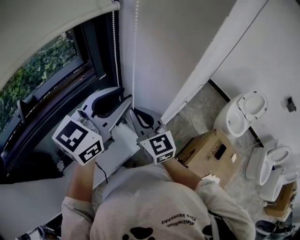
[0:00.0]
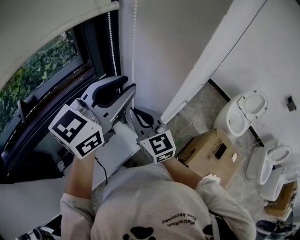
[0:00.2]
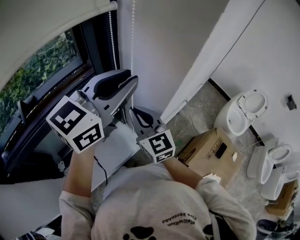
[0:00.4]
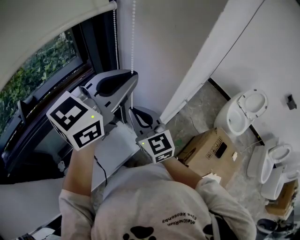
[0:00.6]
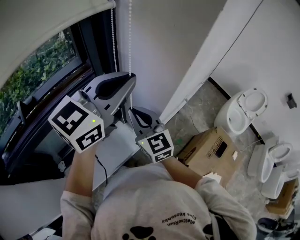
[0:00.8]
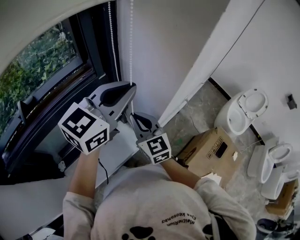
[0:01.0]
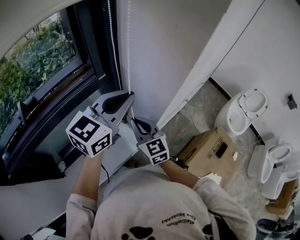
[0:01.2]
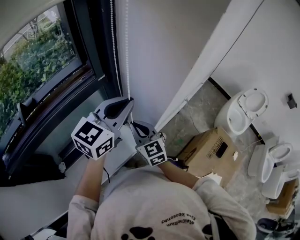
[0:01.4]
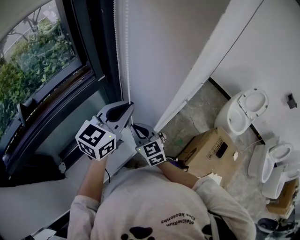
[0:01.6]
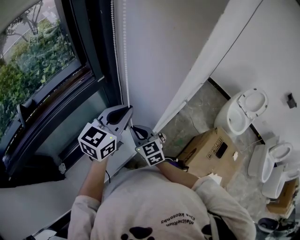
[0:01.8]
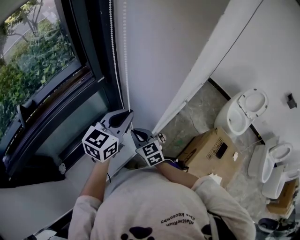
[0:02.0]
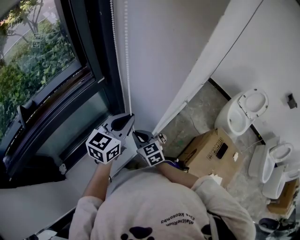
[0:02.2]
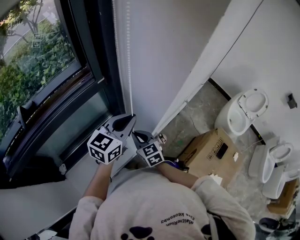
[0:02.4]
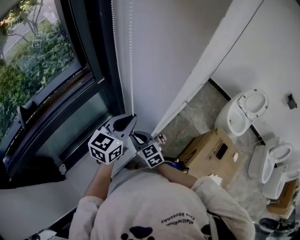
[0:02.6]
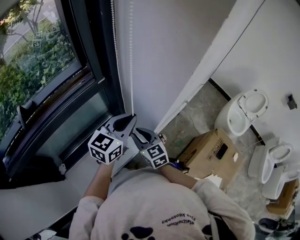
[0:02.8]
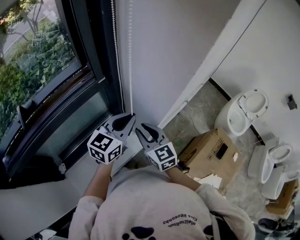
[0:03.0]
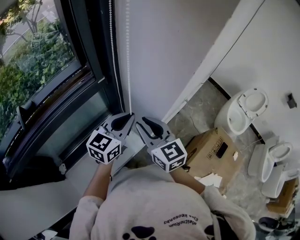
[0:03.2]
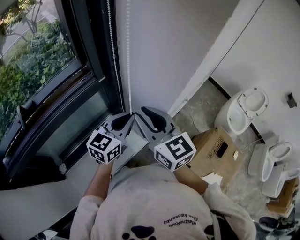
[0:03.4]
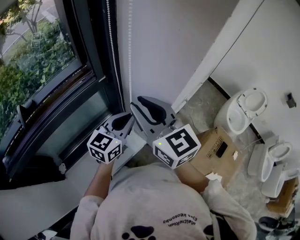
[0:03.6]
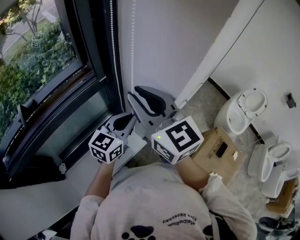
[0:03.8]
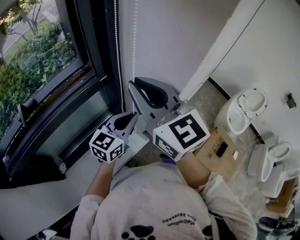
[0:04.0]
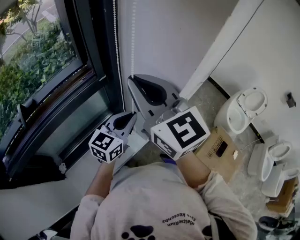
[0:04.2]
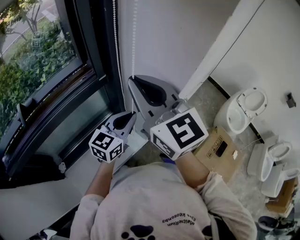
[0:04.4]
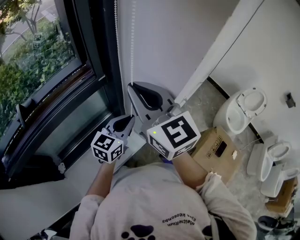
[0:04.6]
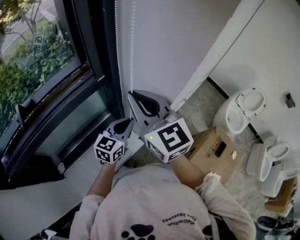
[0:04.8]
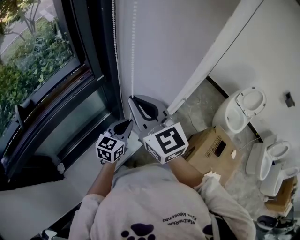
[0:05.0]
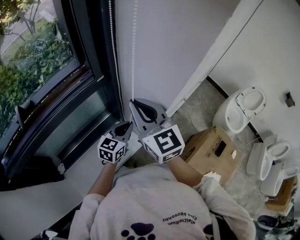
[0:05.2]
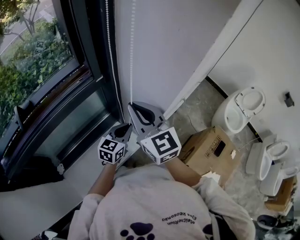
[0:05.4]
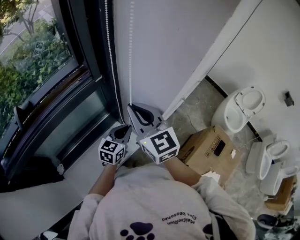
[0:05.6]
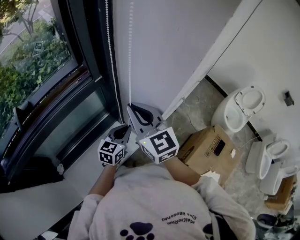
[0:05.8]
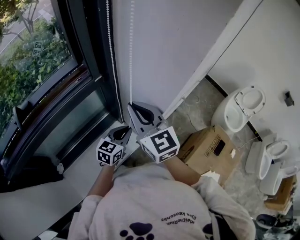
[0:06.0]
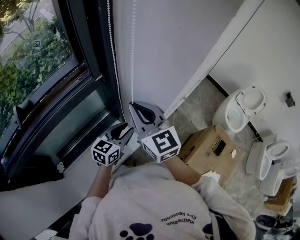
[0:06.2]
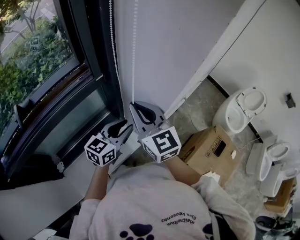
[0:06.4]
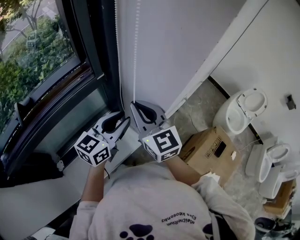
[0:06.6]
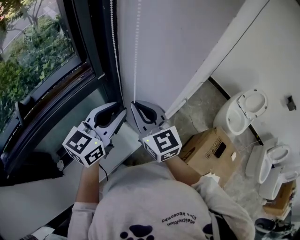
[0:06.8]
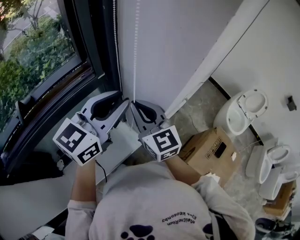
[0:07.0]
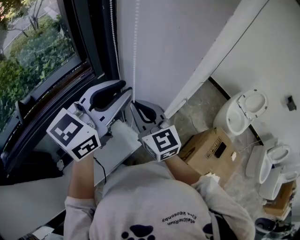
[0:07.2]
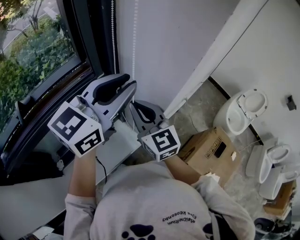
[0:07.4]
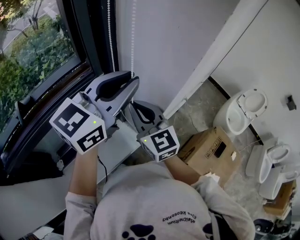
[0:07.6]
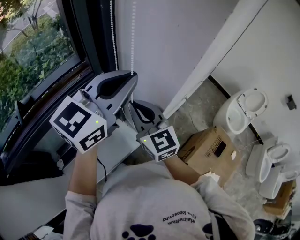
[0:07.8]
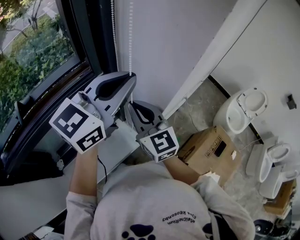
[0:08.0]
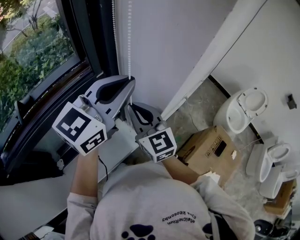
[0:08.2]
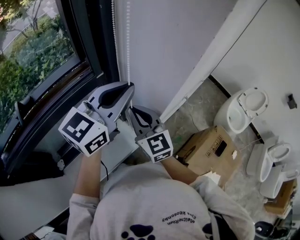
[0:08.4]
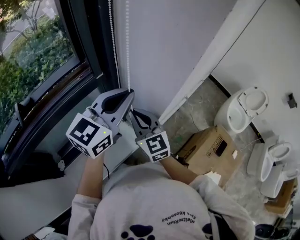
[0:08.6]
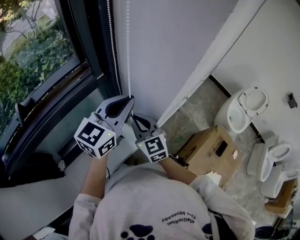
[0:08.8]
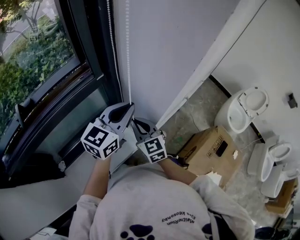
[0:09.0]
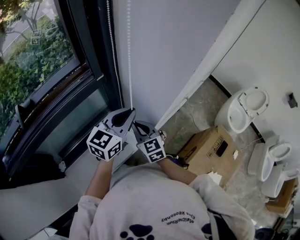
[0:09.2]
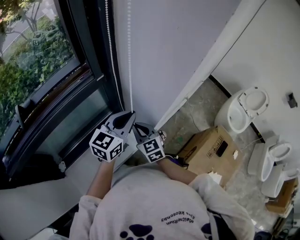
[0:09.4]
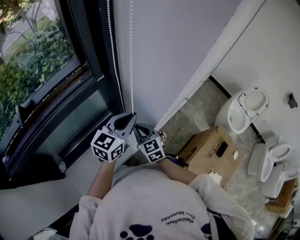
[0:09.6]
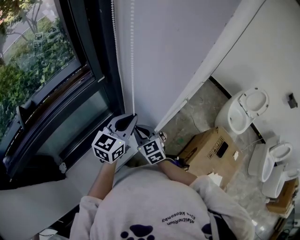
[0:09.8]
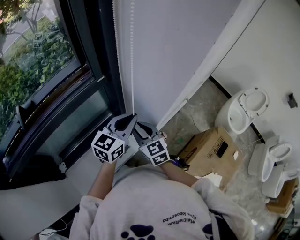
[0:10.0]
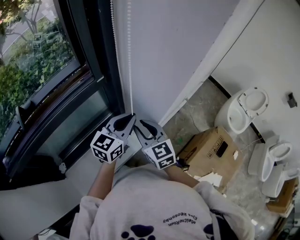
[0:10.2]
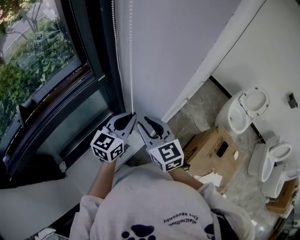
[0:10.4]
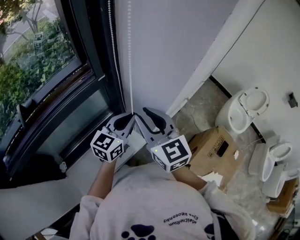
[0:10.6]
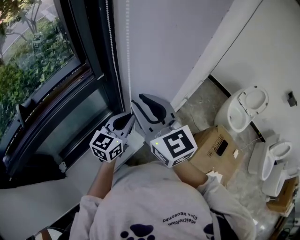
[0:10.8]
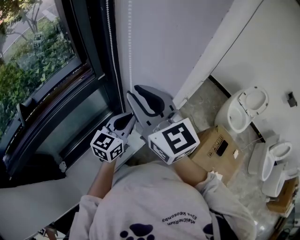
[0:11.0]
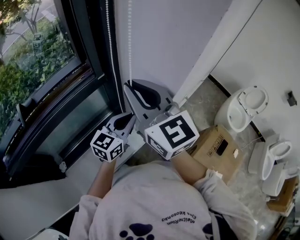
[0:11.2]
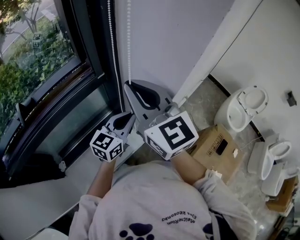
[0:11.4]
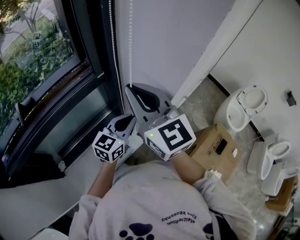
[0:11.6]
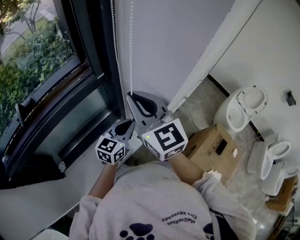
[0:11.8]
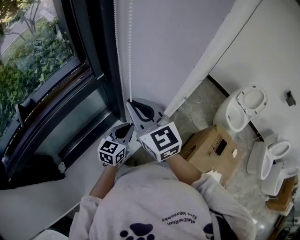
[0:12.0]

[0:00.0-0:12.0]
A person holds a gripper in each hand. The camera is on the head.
0:00.0 to 0:01.6: The grippers both shift downward by about 10 cm. The left gripper closes its fingers.
0:01.6 to 0:03.0: The left gripper travels downward by approximately 5 cm. The right gripper moves approximately 5 cm downward and comes back, and opens.
0:03.0 to 0:04.4: The right gripper moves upward, some 25 cm, turns by approximately 20 degrees, and closes its fingers.
0:04.4 to 0:06.0: The two grippers go some 15 cm downward.
0:06.0 to 0:07.6: The left gripper heads upward, covering about 35 cm, and rotates about 30 degrees.
0:07.6 to 0:09.0: Both grippers travel together downward, some 15 cm.
0:09.0 to 0:10.4: The right gripper is displaced upward by about 10 cm, and opens up, while the left gripper travels downward by some 5 cm.
0:10.4 to 0:12.0: The right gripper goes roughly 10 cm upward, and closes. The left gripper is displaced downward by about 10 cm.

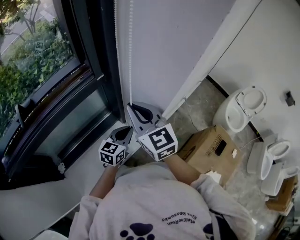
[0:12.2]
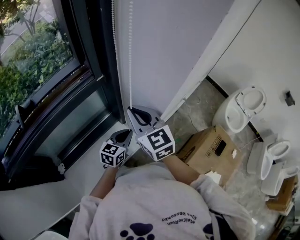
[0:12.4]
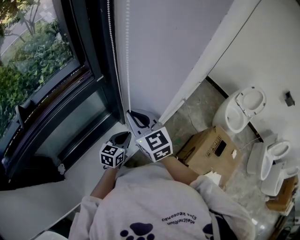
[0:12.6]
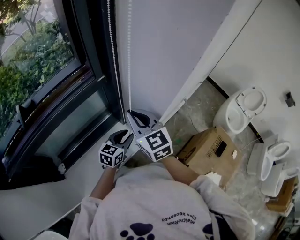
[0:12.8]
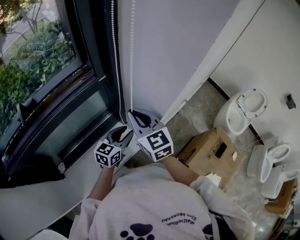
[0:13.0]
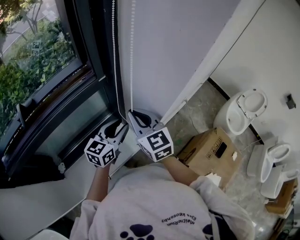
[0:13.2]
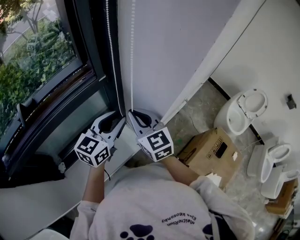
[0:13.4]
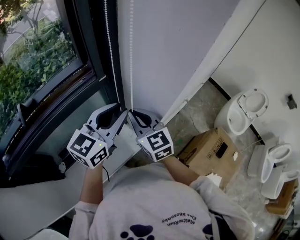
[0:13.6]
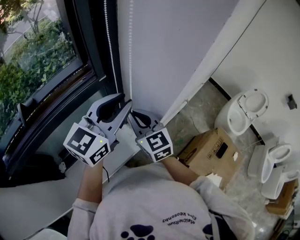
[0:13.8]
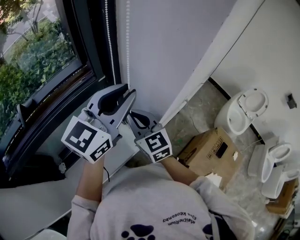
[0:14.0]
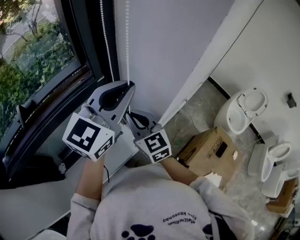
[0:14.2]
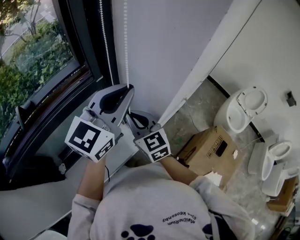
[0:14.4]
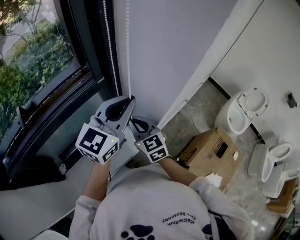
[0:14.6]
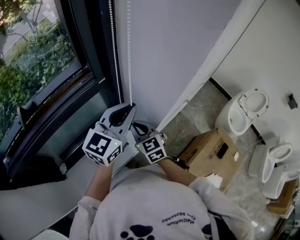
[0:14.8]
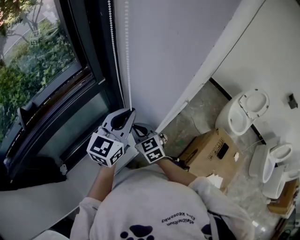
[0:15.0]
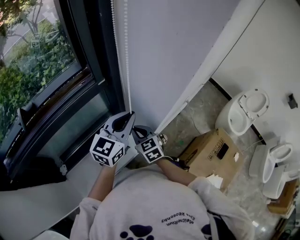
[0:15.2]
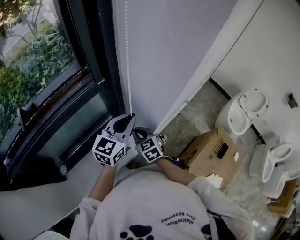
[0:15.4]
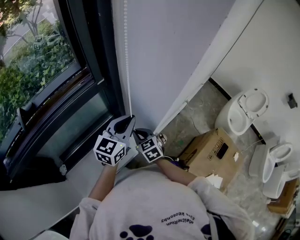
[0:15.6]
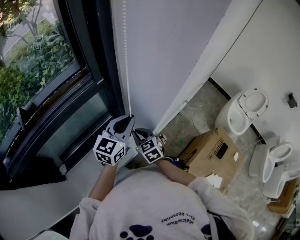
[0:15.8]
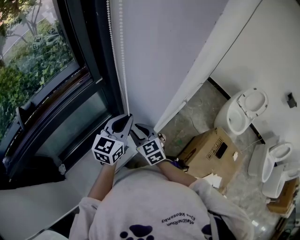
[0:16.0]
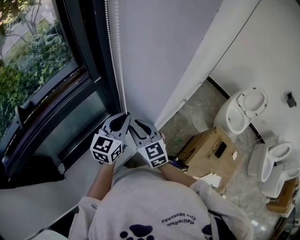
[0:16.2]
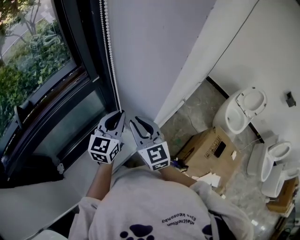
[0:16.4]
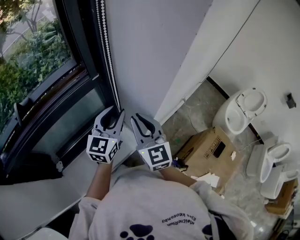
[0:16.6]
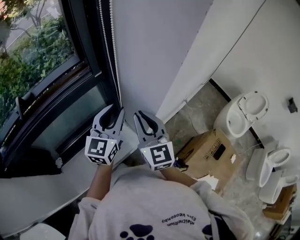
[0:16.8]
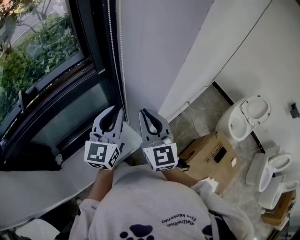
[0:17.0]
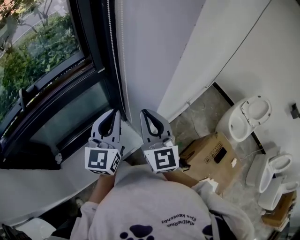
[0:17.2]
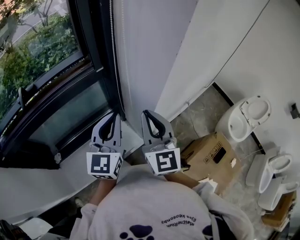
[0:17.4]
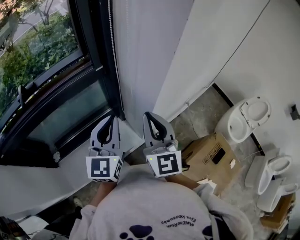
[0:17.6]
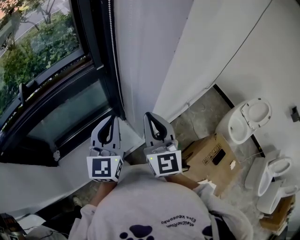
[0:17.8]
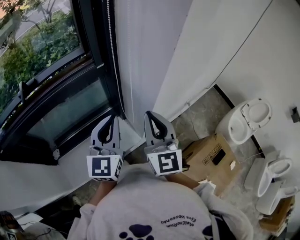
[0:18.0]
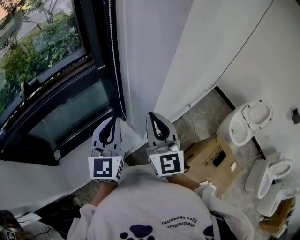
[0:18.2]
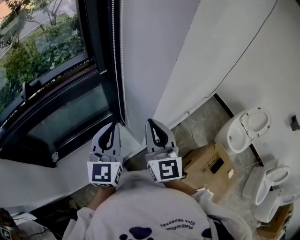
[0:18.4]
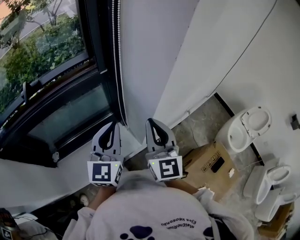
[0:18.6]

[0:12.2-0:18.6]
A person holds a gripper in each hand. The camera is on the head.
0:12.2 to 0:13.8: The left gripper heads upward, covering roughly 25 cm, turns by about 20 degrees, and opens.
0:13.8 to 0:15.4: The two grippers go roughly 15 cm downward. The left gripper closes up; the right gripper swivels some 20 degrees.
0:15.4 to 0:17.0: The right gripper travels upward by some 20 cm, points its fingers approximately 30 degrees further upward, and opens, then closes once more; the left gripper travels upward by some 5 cm, and rotates some 20 degrees.
0:17.0 to 0:18.6: The left gripper travels backward by approximately 5 cm.

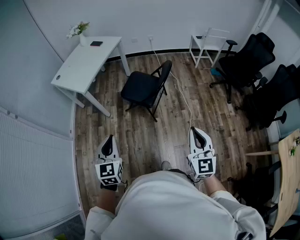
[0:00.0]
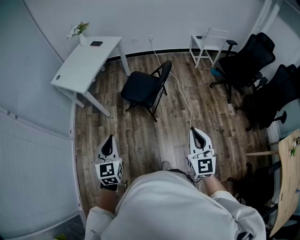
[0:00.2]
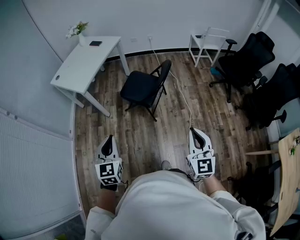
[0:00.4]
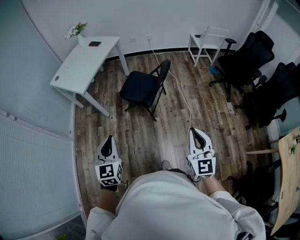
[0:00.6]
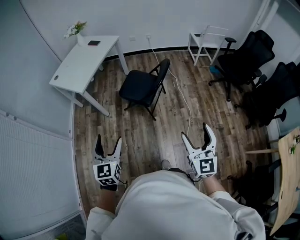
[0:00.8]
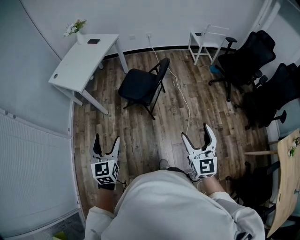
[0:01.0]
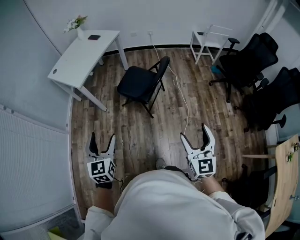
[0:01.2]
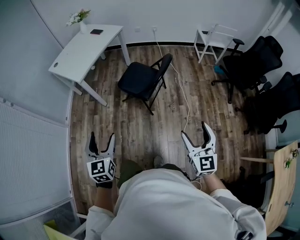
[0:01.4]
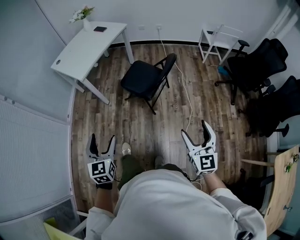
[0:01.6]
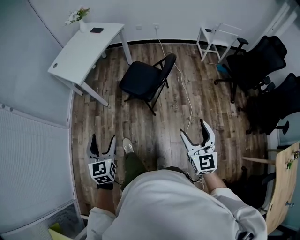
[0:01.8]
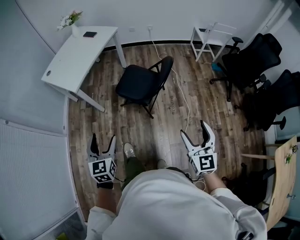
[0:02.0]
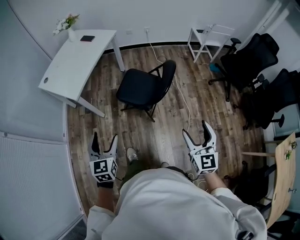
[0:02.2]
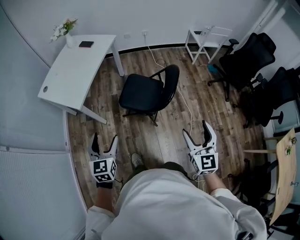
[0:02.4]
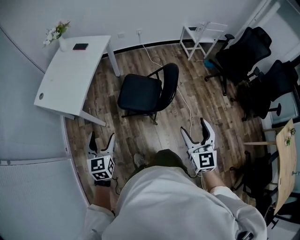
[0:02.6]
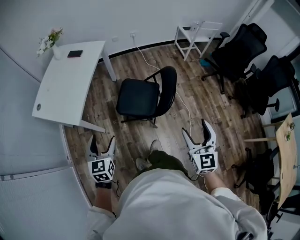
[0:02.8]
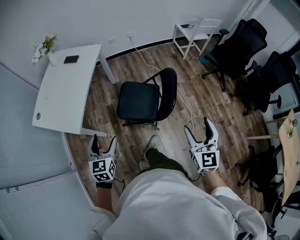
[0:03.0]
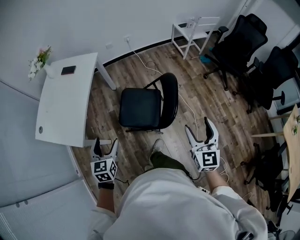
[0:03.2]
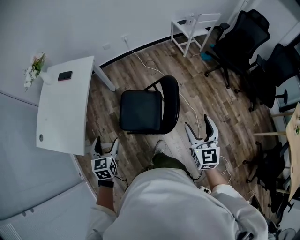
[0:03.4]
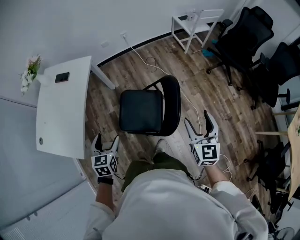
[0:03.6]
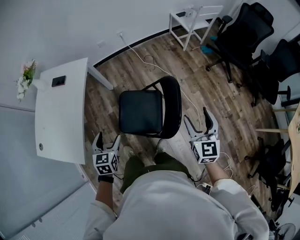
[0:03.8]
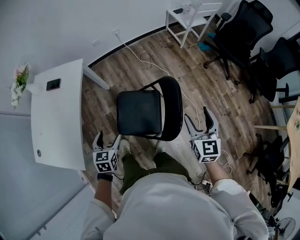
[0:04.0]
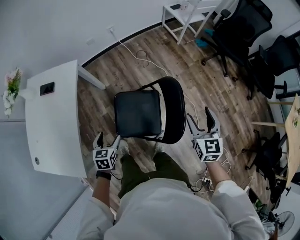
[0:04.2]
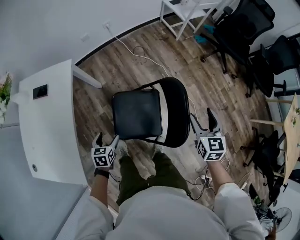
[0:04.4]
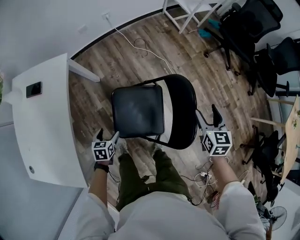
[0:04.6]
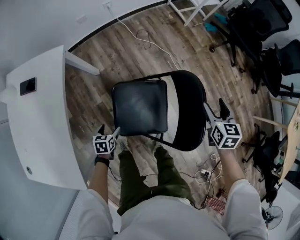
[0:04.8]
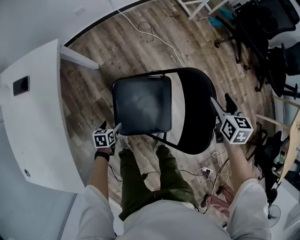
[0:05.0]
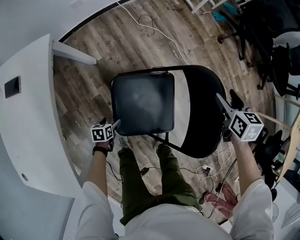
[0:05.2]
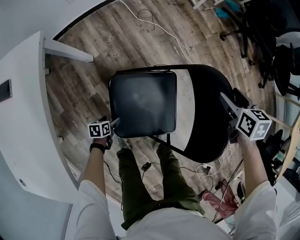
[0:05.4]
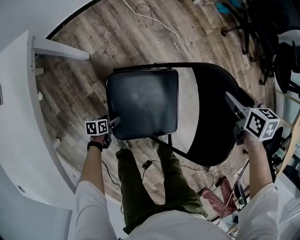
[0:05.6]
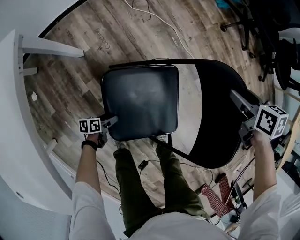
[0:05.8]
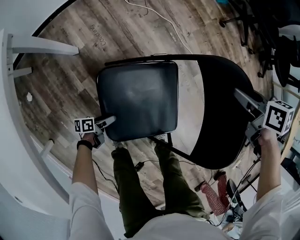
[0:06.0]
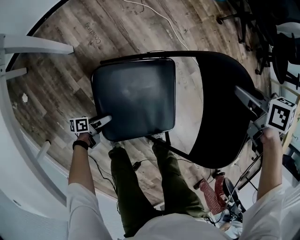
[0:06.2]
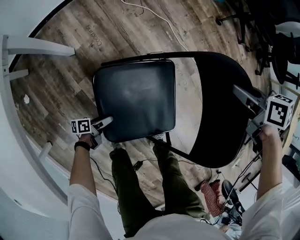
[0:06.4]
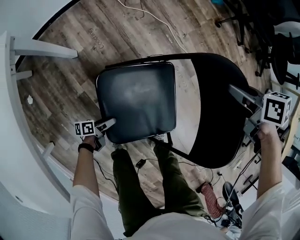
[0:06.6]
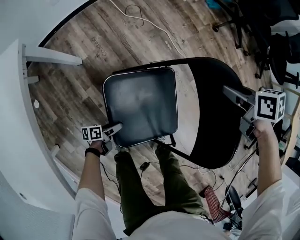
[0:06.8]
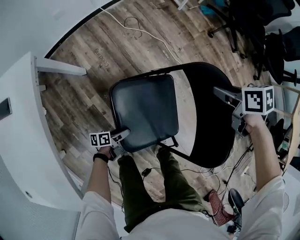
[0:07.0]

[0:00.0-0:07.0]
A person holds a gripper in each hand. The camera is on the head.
0:00.0 to 0:01.4: The left gripper opens its fingers, while the right gripper goes about 5 cm to the right, and opens.
0:01.4 to 0:02.8: The two grippers go roughly 35 cm forward and to the left.
0:02.8 to 0:04.2: The left gripper goes about 40 cm forward and downward, and changes its angle by some 30 degrees. The right gripper is displaced forward by approximately 35 cm, and swivels approximately 20 degrees.
0:04.2 to 0:05.6: The left gripper shifts about 50 cm downward, and swivels about 50 degrees. Meanwhile the right gripper moves downward, approximately 30 cm, and tilts its fingers some 30 degrees downward.
0:05.6 to 0:07.0: The left gripper ends up some 15 cm from where it was, and swivels approximately 20 degrees, while the right gripper rotates some 20 degrees, and closes up.
